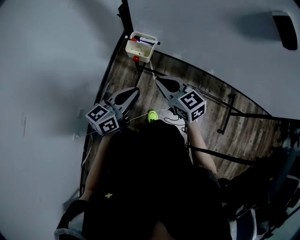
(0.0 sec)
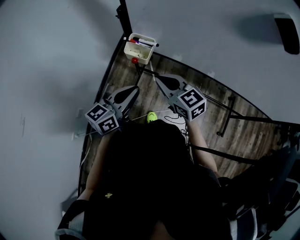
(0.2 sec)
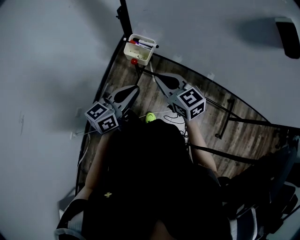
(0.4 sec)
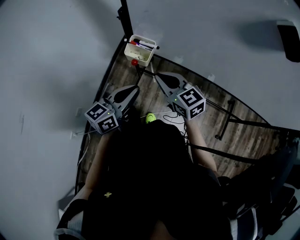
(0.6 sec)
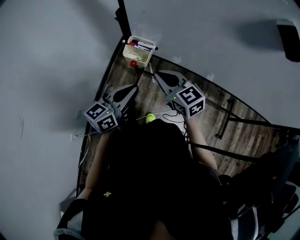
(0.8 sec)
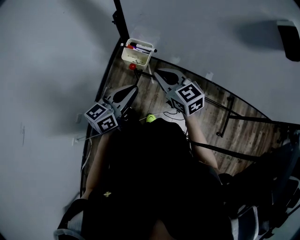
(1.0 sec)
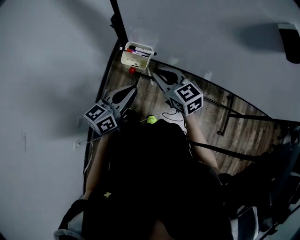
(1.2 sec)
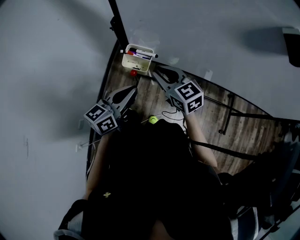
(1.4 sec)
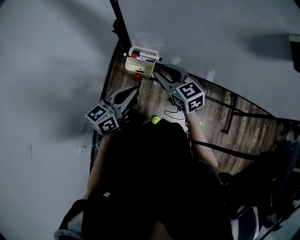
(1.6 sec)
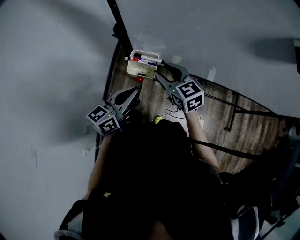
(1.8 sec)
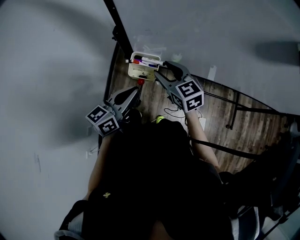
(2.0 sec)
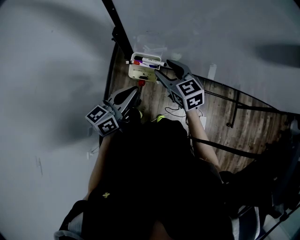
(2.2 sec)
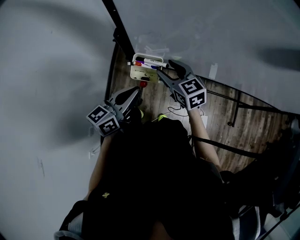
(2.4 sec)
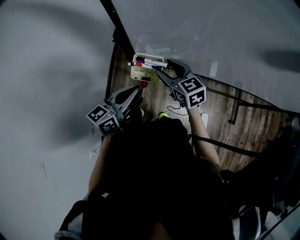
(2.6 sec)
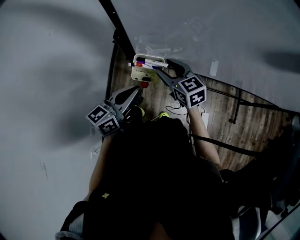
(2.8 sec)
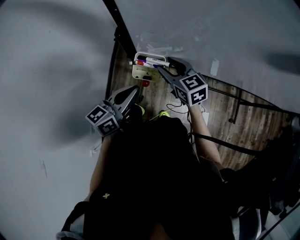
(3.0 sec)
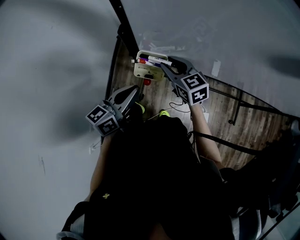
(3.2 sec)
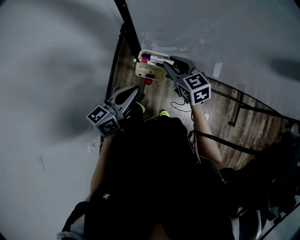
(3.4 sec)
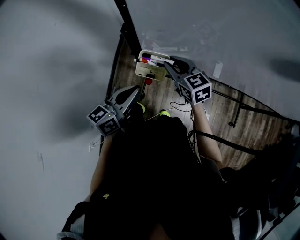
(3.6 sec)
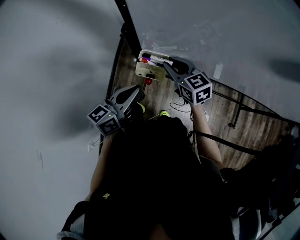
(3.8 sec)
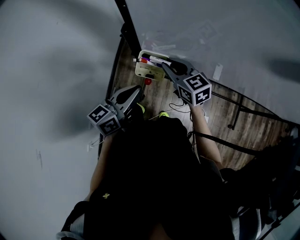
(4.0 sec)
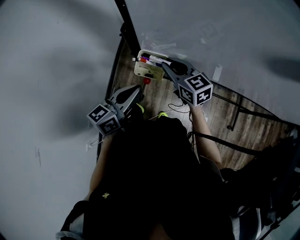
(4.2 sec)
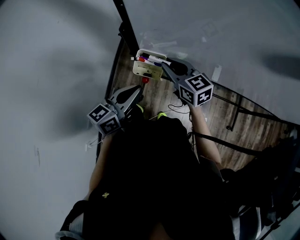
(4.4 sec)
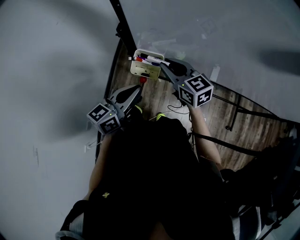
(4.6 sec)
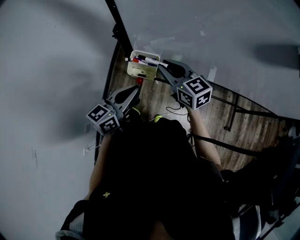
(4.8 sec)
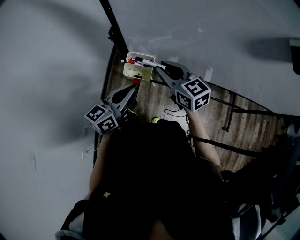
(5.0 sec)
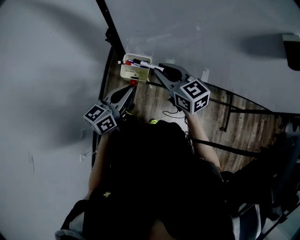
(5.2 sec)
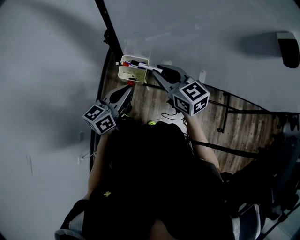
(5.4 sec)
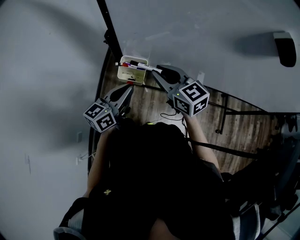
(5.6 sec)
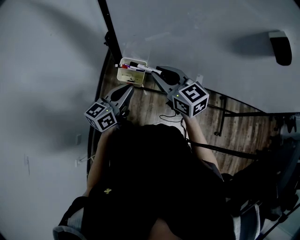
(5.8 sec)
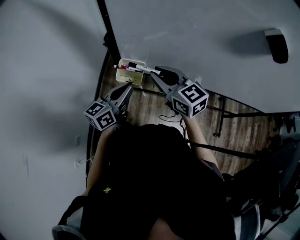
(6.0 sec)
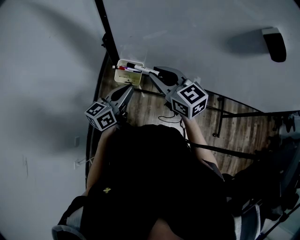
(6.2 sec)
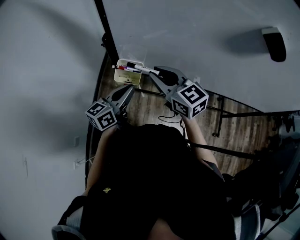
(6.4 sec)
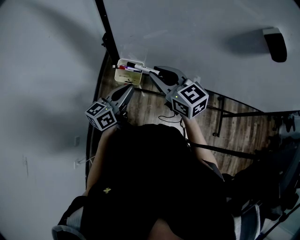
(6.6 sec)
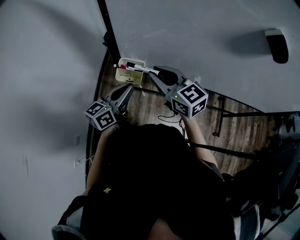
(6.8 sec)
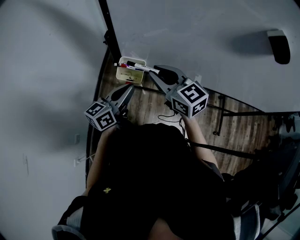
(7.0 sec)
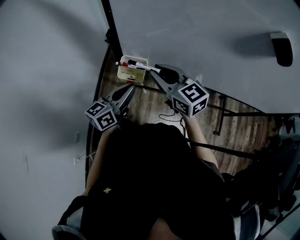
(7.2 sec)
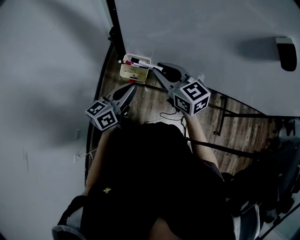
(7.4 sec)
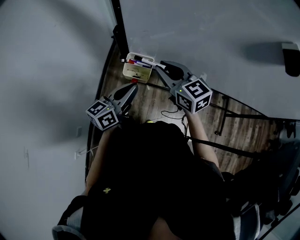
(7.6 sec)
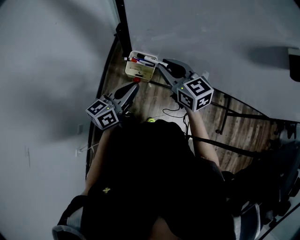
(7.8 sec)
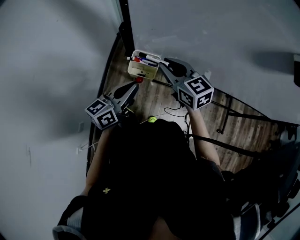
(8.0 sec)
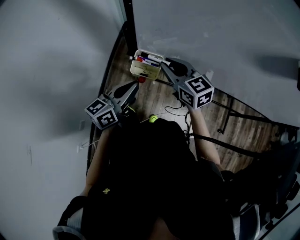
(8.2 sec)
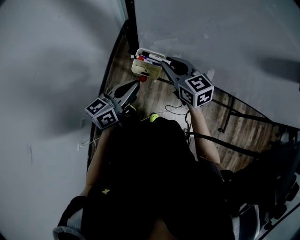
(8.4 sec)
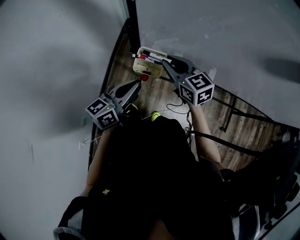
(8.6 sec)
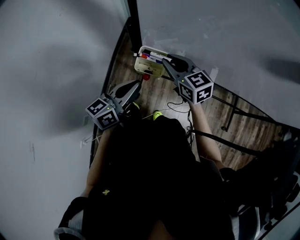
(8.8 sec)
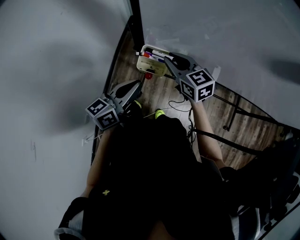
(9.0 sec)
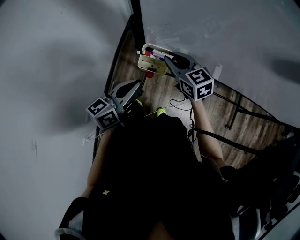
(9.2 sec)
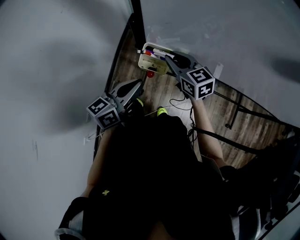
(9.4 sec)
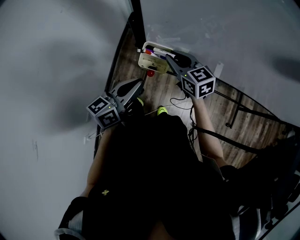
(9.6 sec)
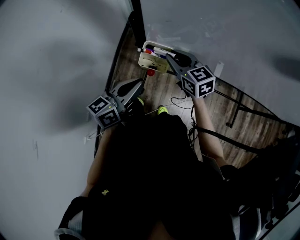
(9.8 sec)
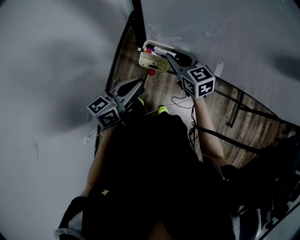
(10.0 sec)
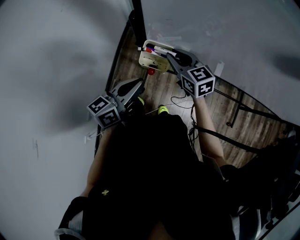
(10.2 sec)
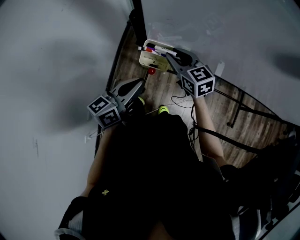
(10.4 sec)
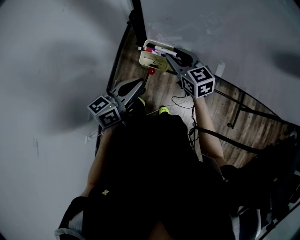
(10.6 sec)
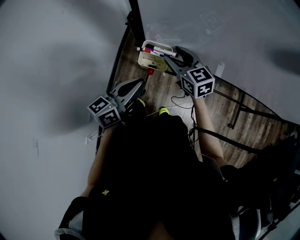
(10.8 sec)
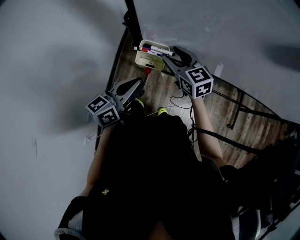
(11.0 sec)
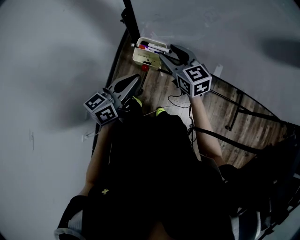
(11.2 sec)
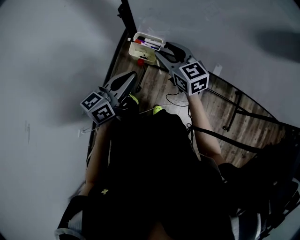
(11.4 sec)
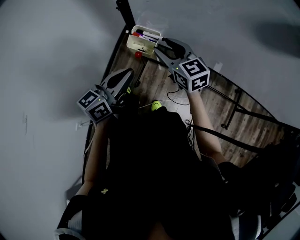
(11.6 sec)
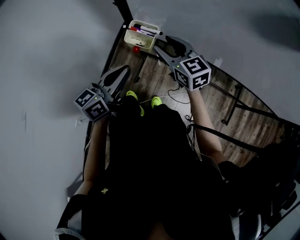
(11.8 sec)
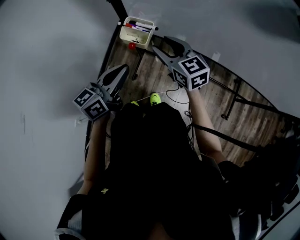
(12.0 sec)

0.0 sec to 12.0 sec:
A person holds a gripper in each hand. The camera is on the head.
0.0 sec to 1.6 sec: Both grippers move forward, roughly 10 cm. The right gripper opens its fingers.
1.6 sec to 3.0 sec: The right gripper is displaced forward by about 5 cm, while the left gripper shifts by about 5 cm.
3.0 sec to 4.4 sec: The right gripper closes up.
4.4 sec to 6.0 sec: The right gripper heads upward, covering approximately 10 cm.
6.0 sec to 7.6 sec: The grippers stay close to where they were, moving slightly.
7.6 sec to 9.0 sec: The right gripper is displaced downward by about 5 cm.
9.0 sec to 10.4 sec: There are only small adjustments of the grippers.
10.4 sec to 12.0 sec: The grippers both shift backward by about 5 cm. The right gripper opens.

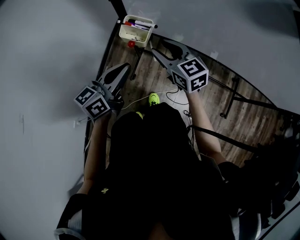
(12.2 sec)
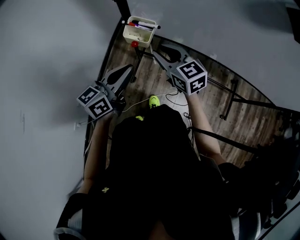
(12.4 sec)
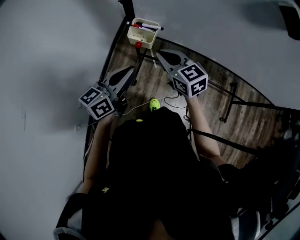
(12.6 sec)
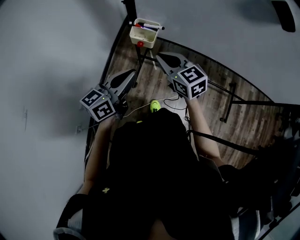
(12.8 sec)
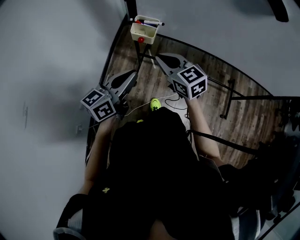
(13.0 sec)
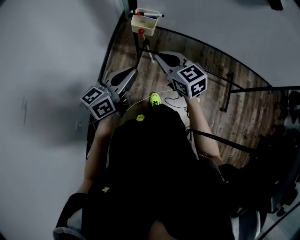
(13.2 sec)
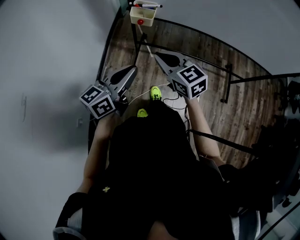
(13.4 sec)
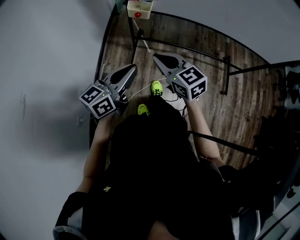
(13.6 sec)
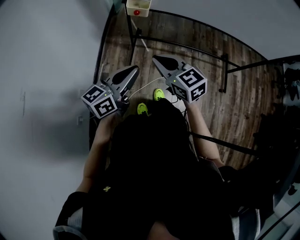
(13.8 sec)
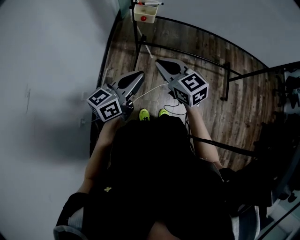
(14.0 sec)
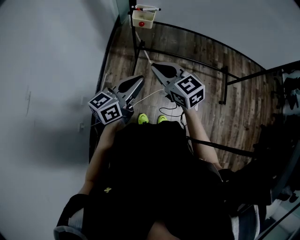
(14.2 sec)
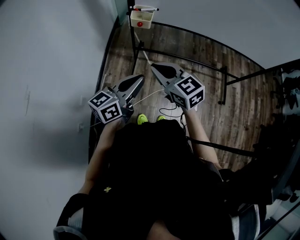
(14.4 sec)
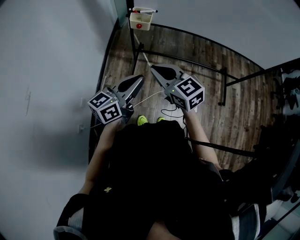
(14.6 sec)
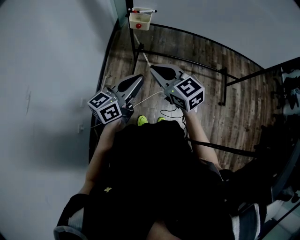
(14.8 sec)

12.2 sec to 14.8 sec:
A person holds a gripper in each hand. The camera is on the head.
12.2 sec to 13.4 sec: Both grippers move backward, about 15 cm. The right gripper closes up.
13.4 sec to 14.8 sec: Both grippers move backward, about 10 cm.

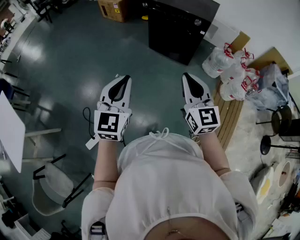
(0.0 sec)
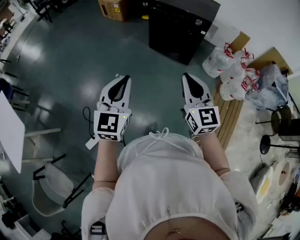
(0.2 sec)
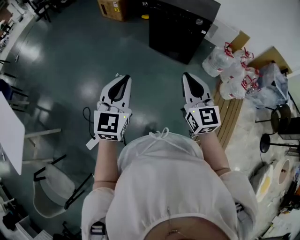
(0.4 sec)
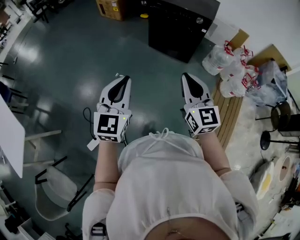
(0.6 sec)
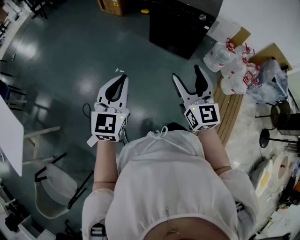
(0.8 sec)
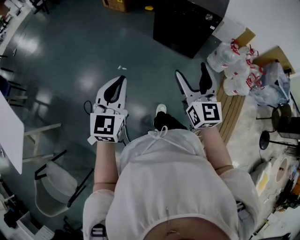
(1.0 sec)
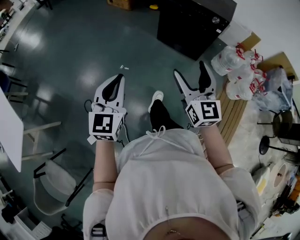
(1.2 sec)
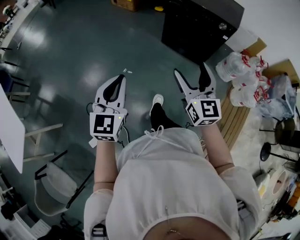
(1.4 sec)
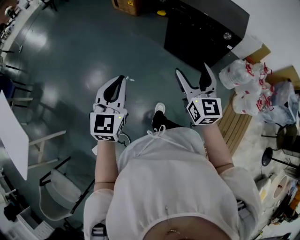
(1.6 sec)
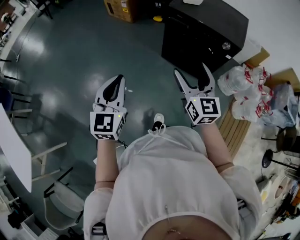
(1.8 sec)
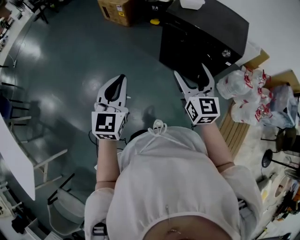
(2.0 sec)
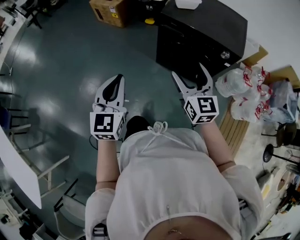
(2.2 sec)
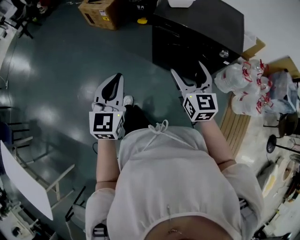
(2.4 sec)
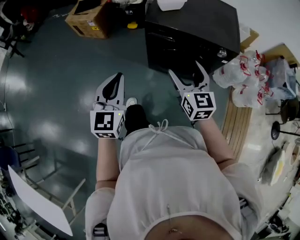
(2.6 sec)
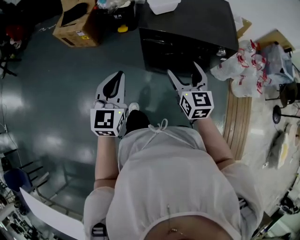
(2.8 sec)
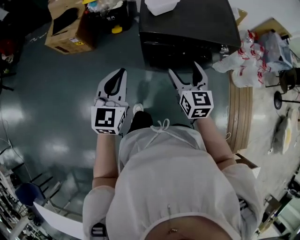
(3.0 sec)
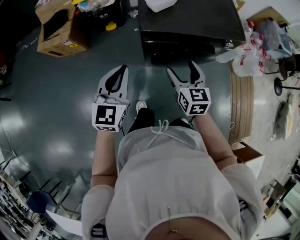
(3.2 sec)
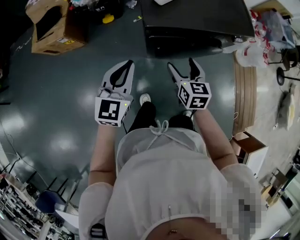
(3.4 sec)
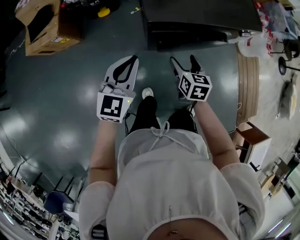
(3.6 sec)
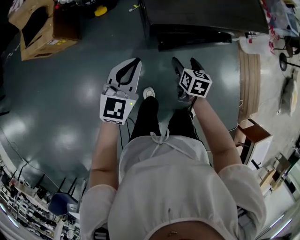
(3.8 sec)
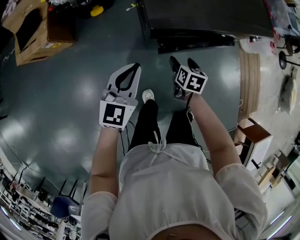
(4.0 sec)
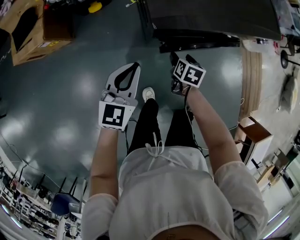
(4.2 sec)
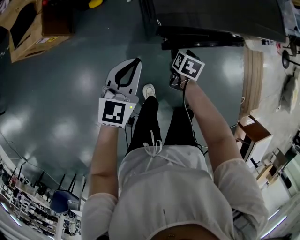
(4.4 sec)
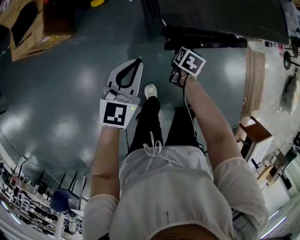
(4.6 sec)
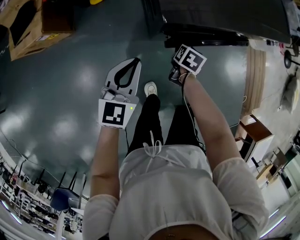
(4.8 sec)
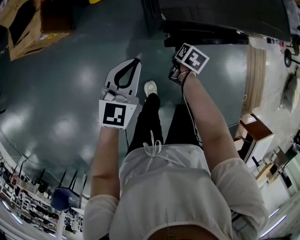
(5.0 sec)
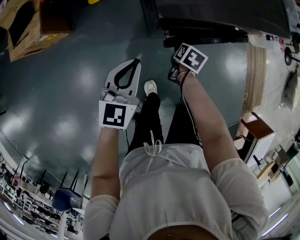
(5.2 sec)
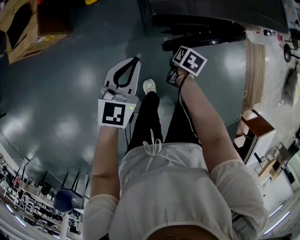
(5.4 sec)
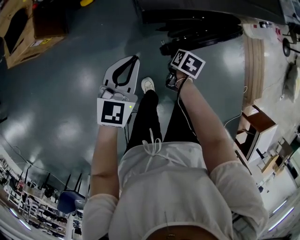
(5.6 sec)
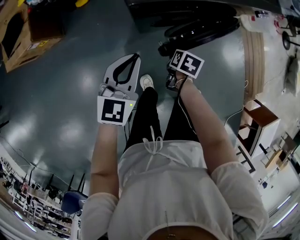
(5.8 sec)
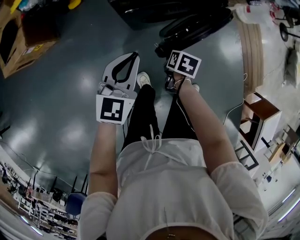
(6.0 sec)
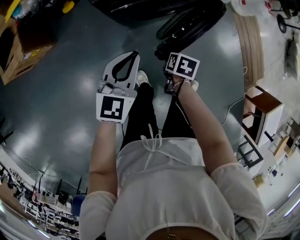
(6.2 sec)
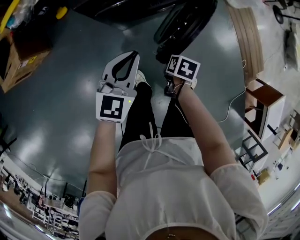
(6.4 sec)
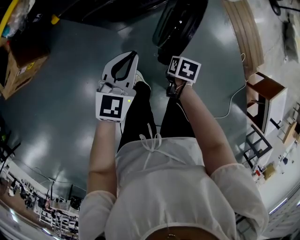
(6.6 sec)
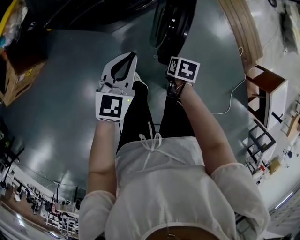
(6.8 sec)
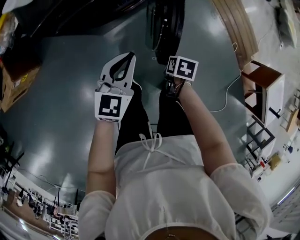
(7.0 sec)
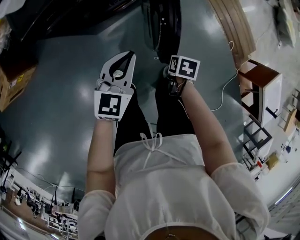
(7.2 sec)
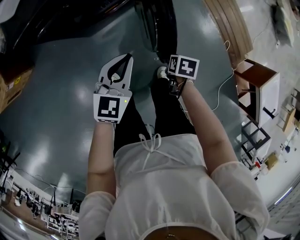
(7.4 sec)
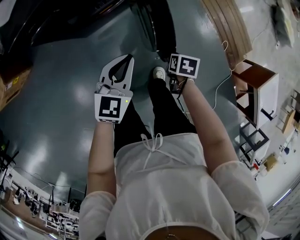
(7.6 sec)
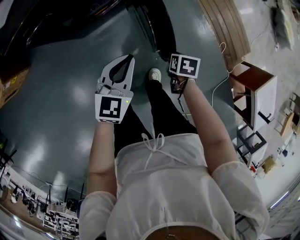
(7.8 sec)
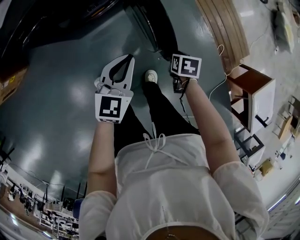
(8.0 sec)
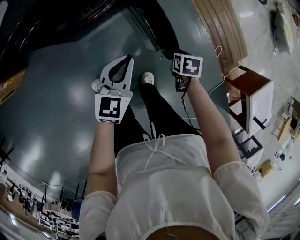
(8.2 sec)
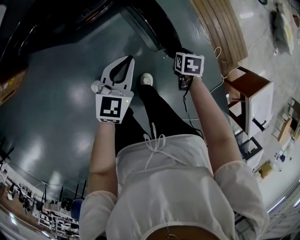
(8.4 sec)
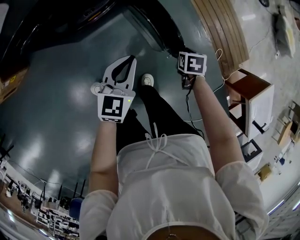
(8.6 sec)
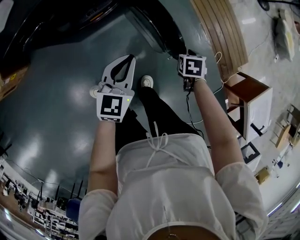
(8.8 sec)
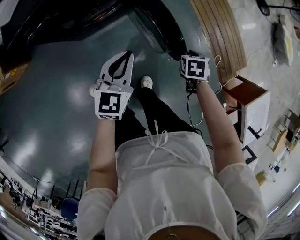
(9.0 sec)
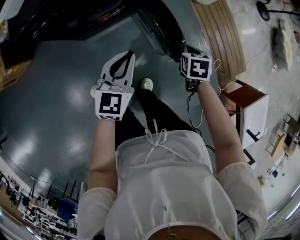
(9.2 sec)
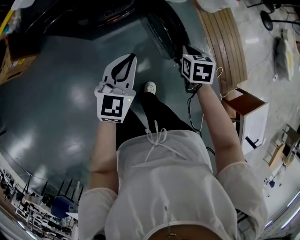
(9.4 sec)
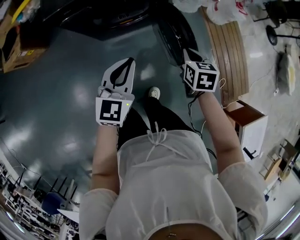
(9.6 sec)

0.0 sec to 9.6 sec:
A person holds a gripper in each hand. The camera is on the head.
0.0 sec to 1.6 sec: Both grippers move forward and to the left, about 30 cm. The right gripper opens.
1.6 sec to 3.2 sec: Both grippers are carried approximately 60 cm. The left gripper turns by approximately 40 degrees. The right gripper turns by roughly 40 degrees.
3.2 sec to 4.8 sec: Both grippers move downward, approximately 30 cm. The right gripper tilts its fingers roughly 40 degrees downward; the left gripper swivels approximately 20 degrees.
4.8 sec to 6.4 sec: The left gripper ends up roughly 20 cm from where it was; the right gripper shifts by about 25 cm, and closes up.
6.4 sec to 8.0 sec: The right gripper shifts by about 40 cm. The left gripper moves approximately 35 cm.
8.0 sec to 9.6 sec: The left gripper is displaced upward and to the left by roughly 15 cm, while the right gripper moves upward and forward, roughly 20 cm, and rotates approximately 30 degrees.
